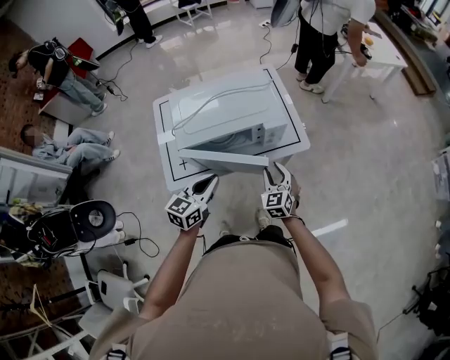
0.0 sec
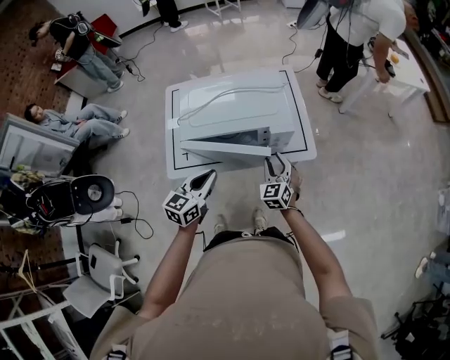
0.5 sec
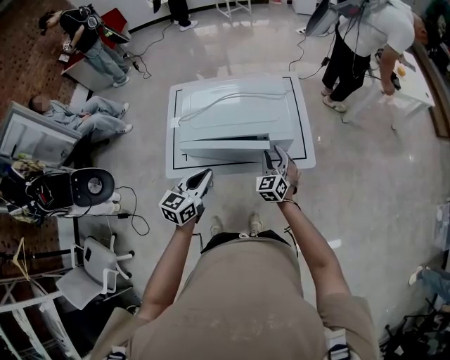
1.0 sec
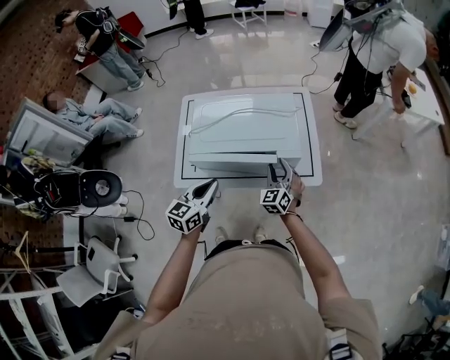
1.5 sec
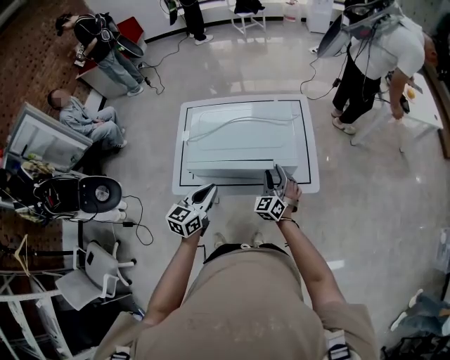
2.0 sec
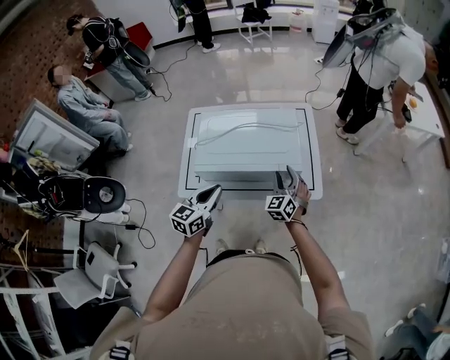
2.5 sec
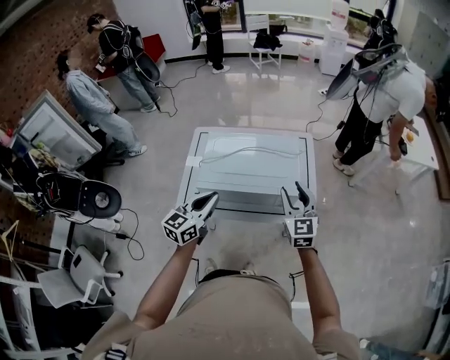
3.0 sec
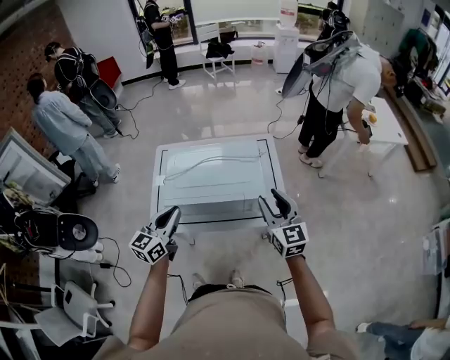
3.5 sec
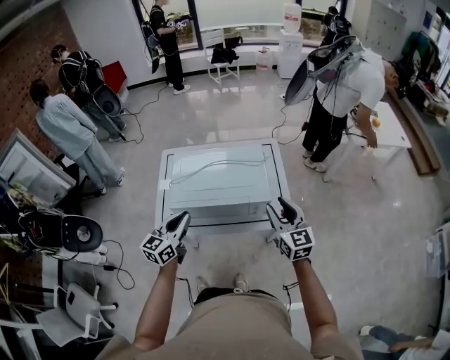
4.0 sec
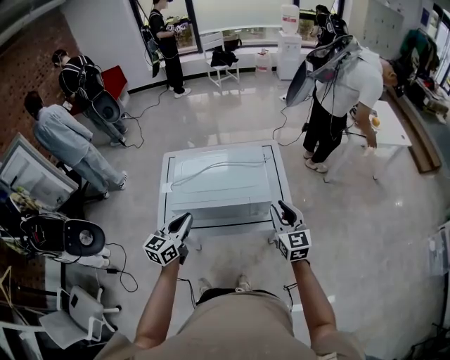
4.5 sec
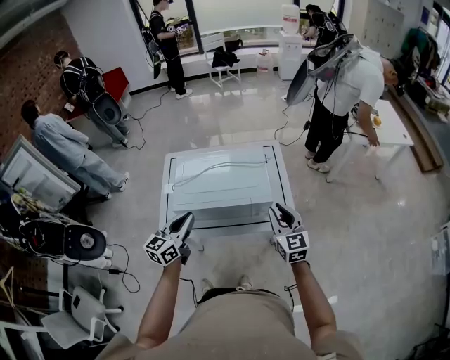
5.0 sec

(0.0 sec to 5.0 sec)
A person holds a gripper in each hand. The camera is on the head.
0.0 sec - 2.5 sec: The right gripper is displaced forward by about 15 cm; the left gripper shifts by about 5 cm.
2.5 sec - 5.0 sec: The right gripper is displaced upward, to the right and backward by roughly 15 cm, rotates roughly 30 degrees, and closes up. Meanwhile the left gripper is displaced upward by about 5 cm.

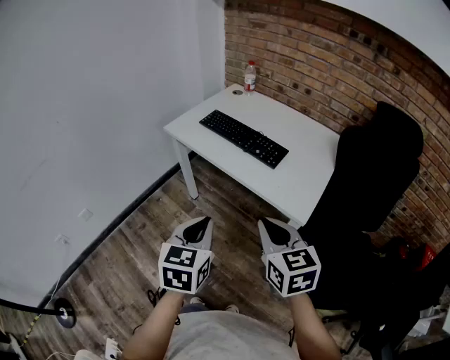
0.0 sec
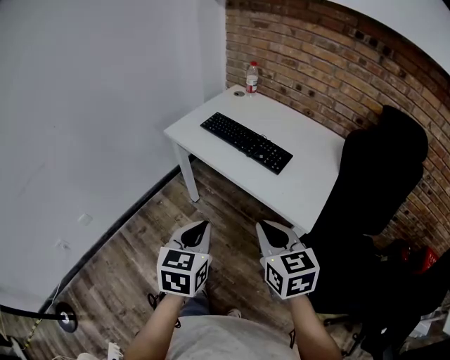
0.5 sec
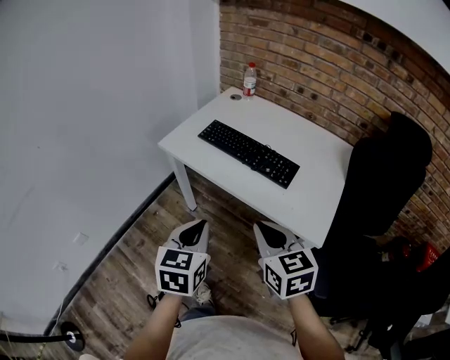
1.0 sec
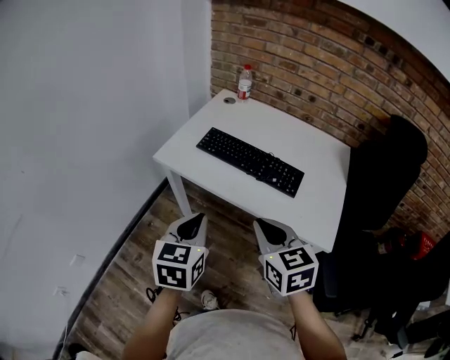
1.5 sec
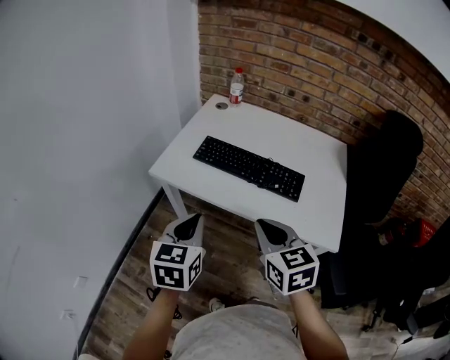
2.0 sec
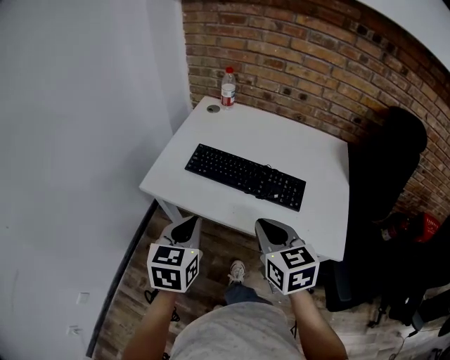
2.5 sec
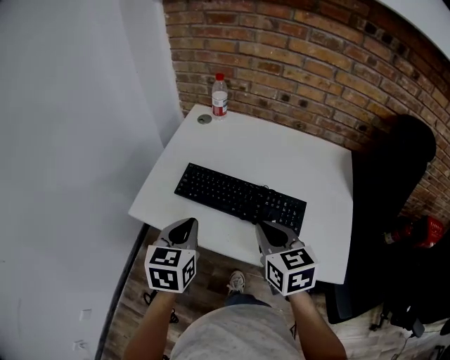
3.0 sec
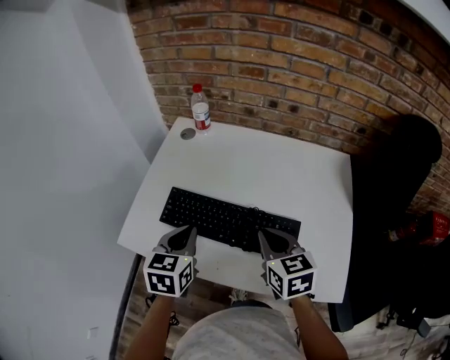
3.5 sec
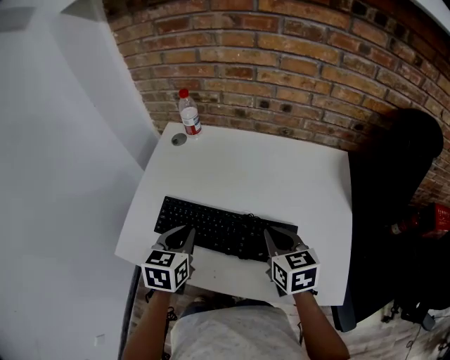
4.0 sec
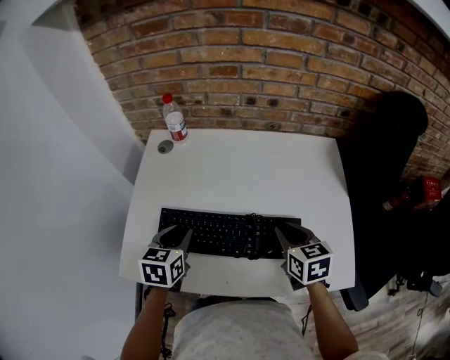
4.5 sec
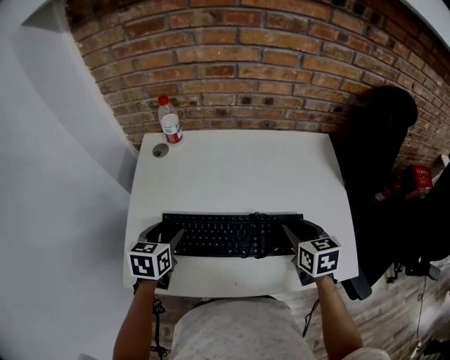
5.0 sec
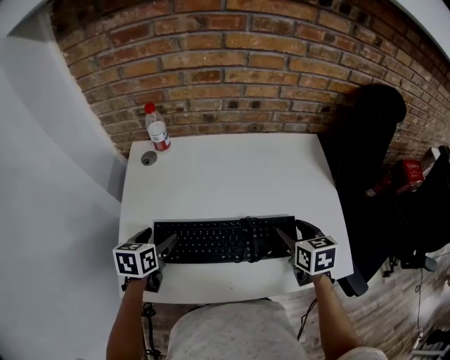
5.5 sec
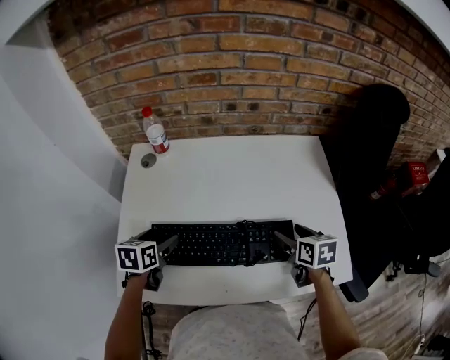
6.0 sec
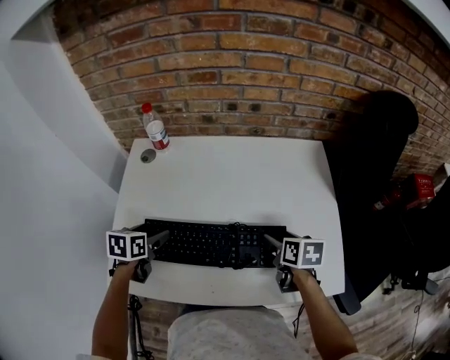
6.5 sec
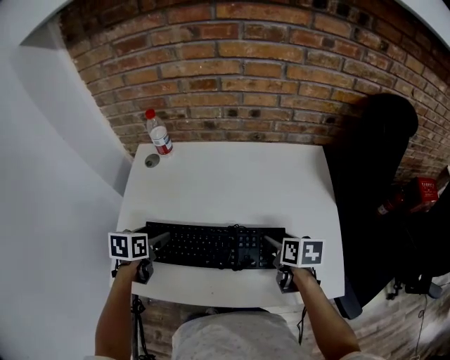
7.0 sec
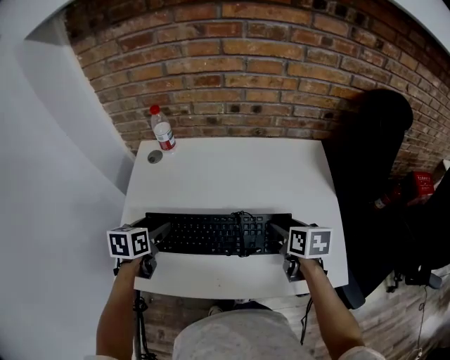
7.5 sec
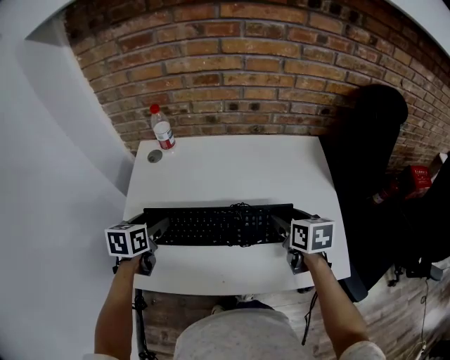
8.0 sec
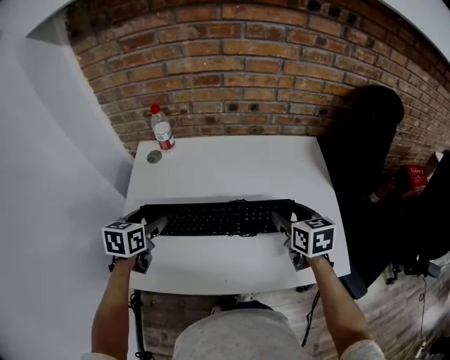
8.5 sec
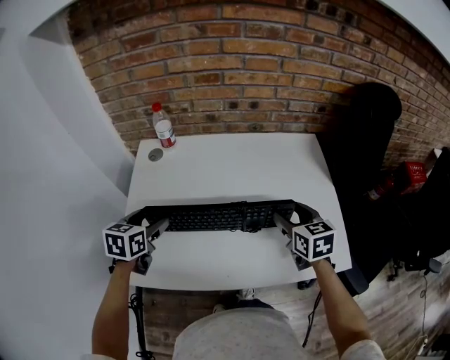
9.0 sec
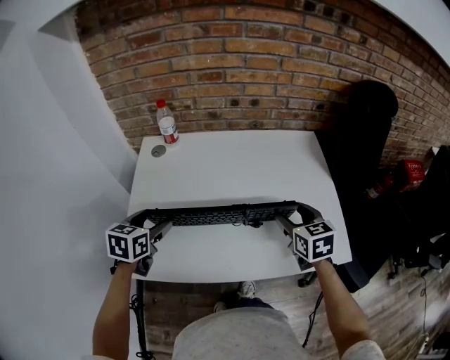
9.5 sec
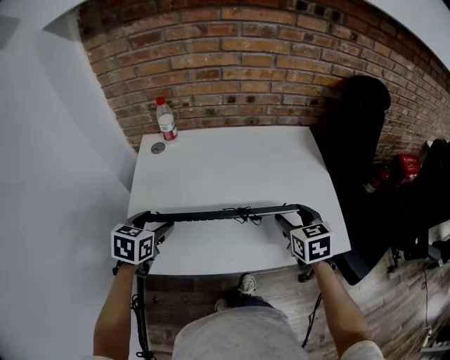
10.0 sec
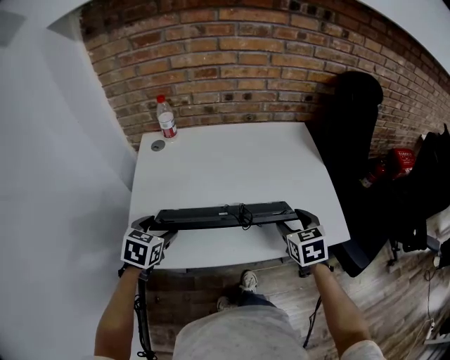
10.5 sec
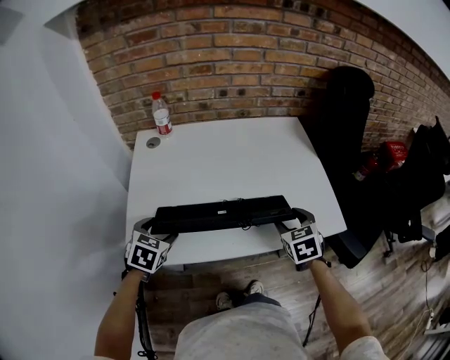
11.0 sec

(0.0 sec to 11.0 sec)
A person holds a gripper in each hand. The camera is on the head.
0.0 sec - 2.0 sec: Both grippers travel together forward and to the left, roughly 30 cm.
2.0 sec - 3.5 sec: The left gripper goes approximately 25 cm forward; the right gripper travels forward and to the right by some 25 cm.
3.5 sec - 5.5 sec: The right gripper travels to the right and downward by approximately 10 cm, swivels some 30 degrees, and opens its fingers; the left gripper heads forward, to the left and downward, covering about 15 cm, turns by roughly 20 degrees, and opens up.
7.5 sec - 9.0 sec: The right gripper changes its angle by about 20 degrees.
9.0 sec - 11.0 sec: The right gripper is displaced backward by about 15 cm, and turns by approximately 20 degrees, while the left gripper travels backward and downward by approximately 15 cm, and rotates roughly 30 degrees.

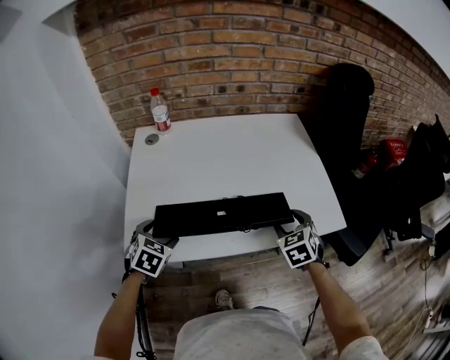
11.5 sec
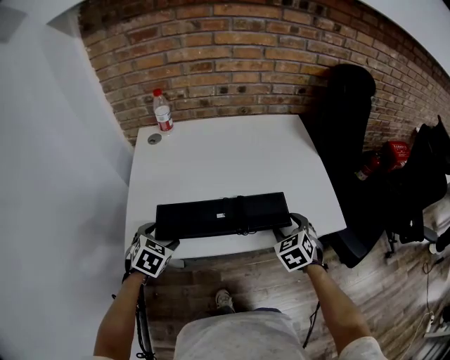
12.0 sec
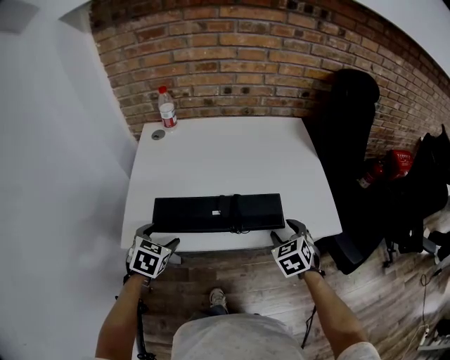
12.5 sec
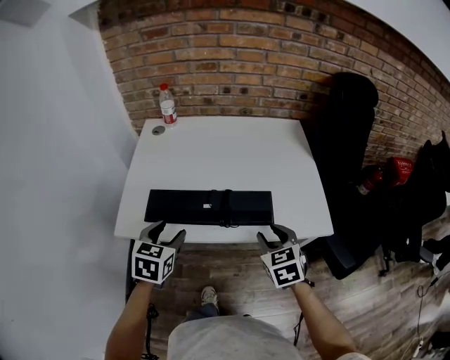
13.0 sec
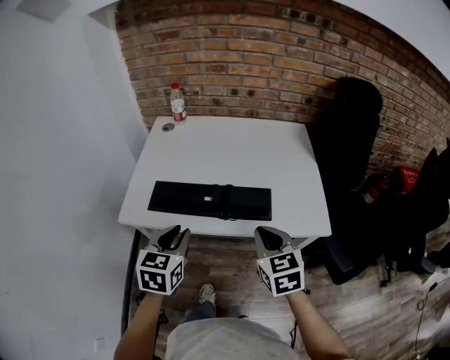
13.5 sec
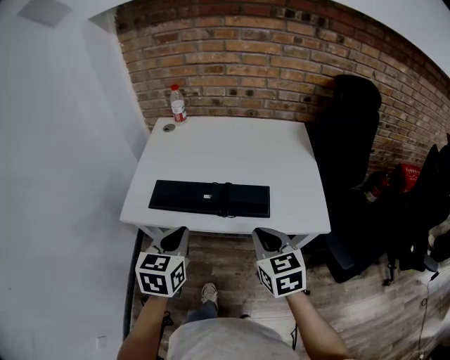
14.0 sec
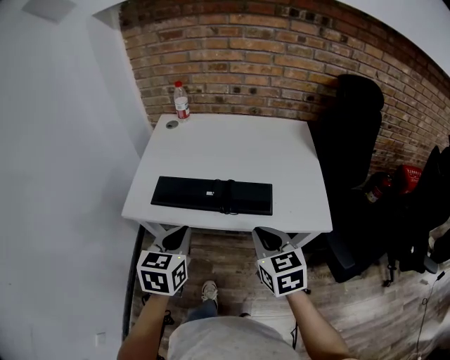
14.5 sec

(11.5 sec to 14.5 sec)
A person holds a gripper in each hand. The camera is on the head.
11.5 sec - 13.0 sec: The left gripper goes about 15 cm to the right, backward and upward, and changes its angle by some 20 degrees. The right gripper moves backward, about 10 cm.
13.0 sec - 14.5 sec: The right gripper heads backward and upward, covering about 10 cm, and closes its fingers, while the left gripper shifts approximately 10 cm backward, to the right and upward, and closes up.

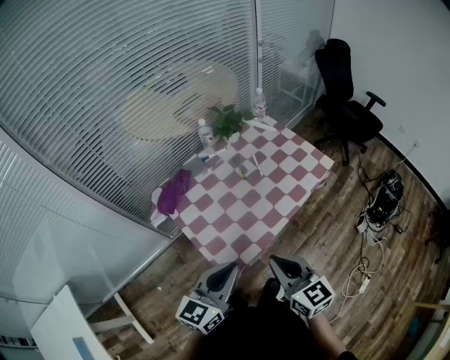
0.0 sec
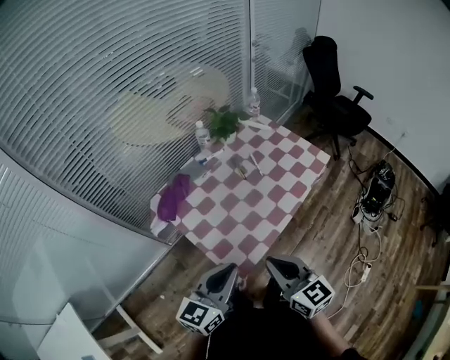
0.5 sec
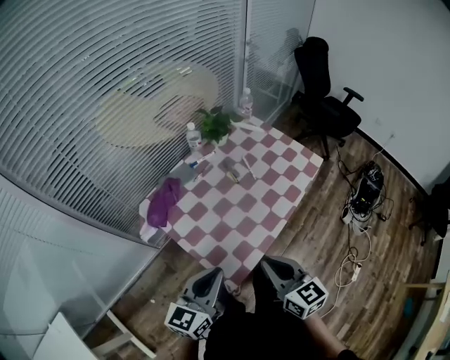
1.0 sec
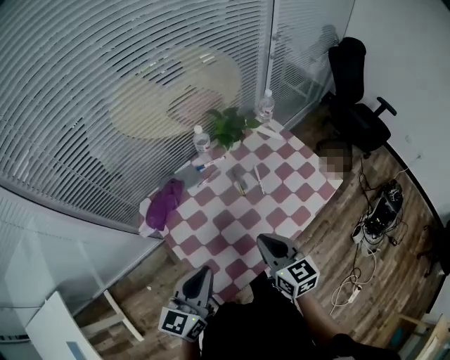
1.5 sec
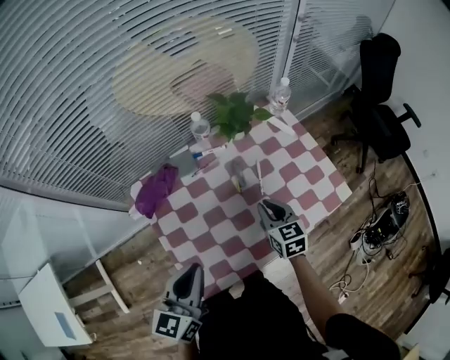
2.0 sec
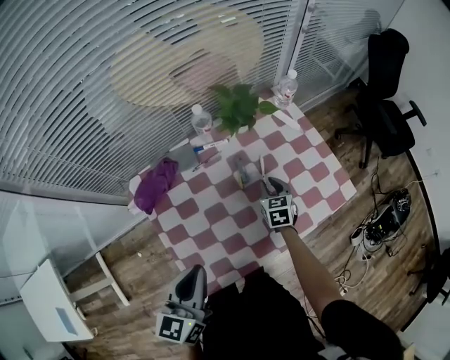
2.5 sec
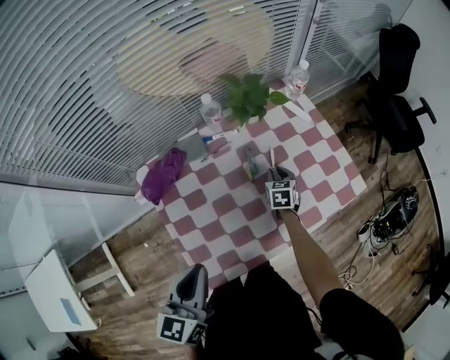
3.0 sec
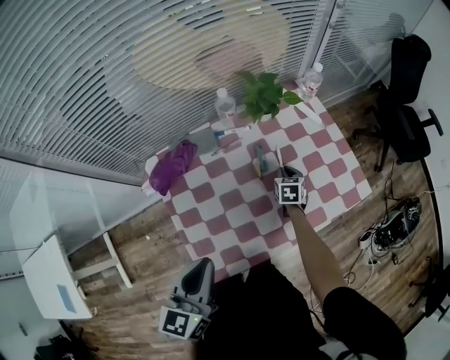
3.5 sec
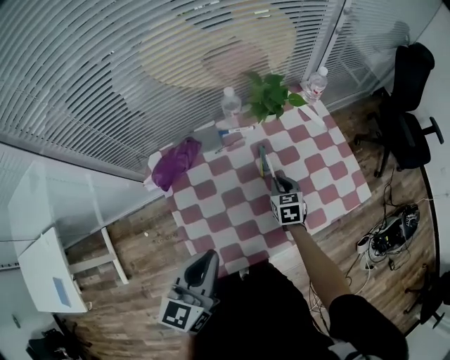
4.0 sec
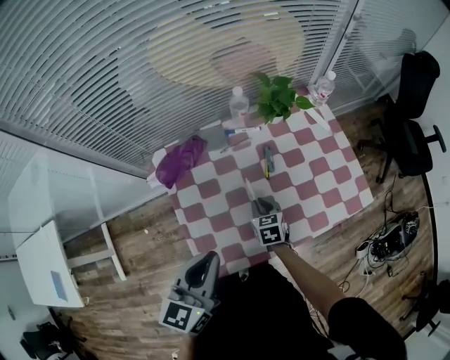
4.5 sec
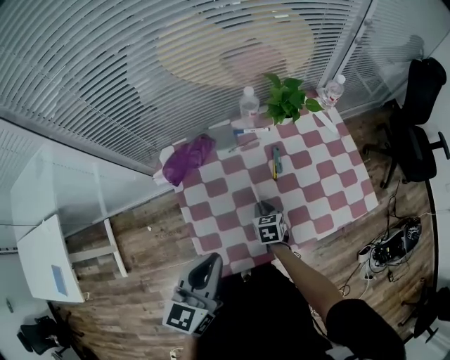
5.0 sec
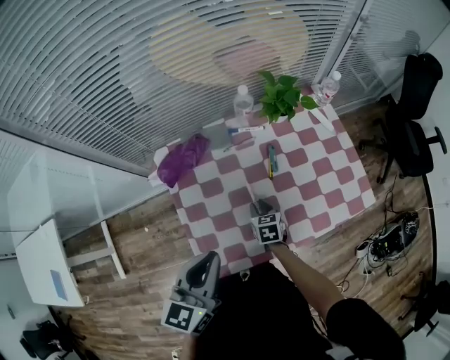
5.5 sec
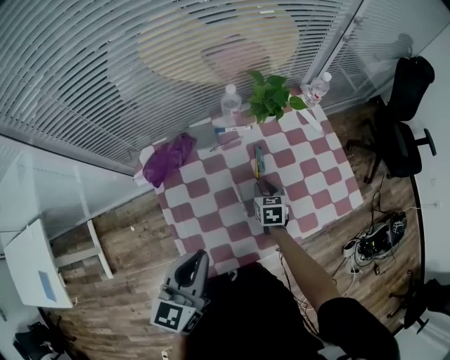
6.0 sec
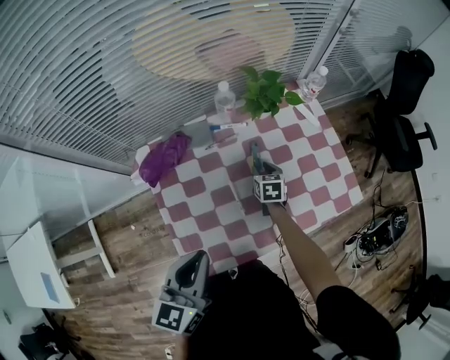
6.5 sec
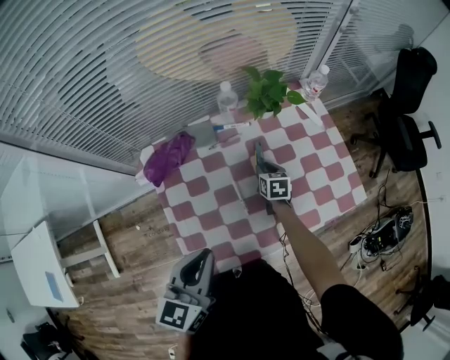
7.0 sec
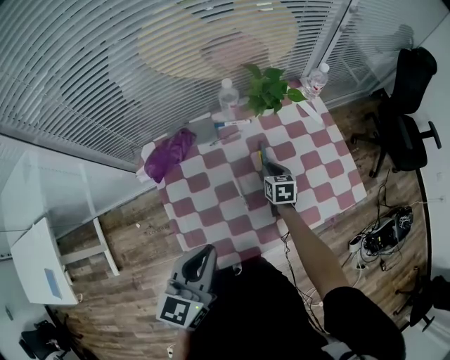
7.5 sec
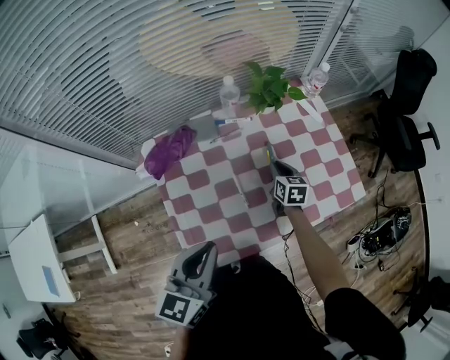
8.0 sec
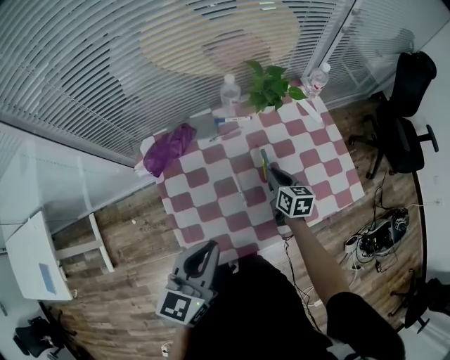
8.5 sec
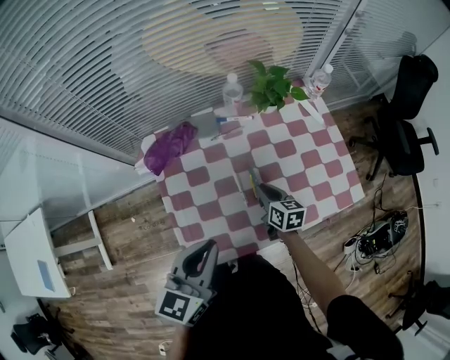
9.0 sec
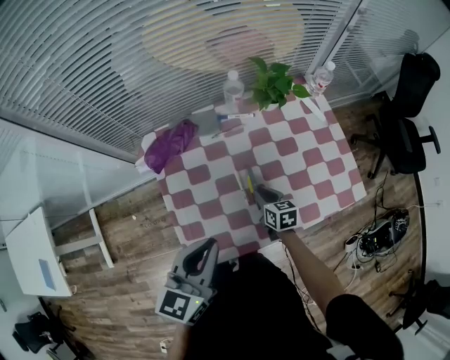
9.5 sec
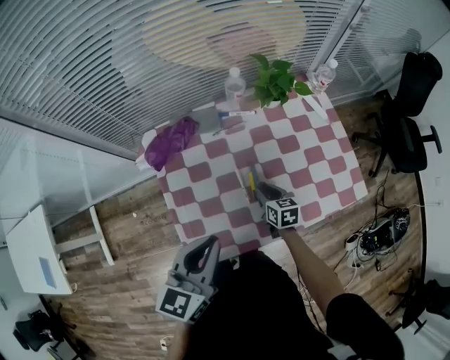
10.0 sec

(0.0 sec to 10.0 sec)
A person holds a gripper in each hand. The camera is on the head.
0.0 sec - 2.0 sec: The right gripper travels forward and downward by about 40 cm, and swivels approximately 20 degrees. The left gripper heads forward, covering roughly 20 cm, and changes its angle by about 30 degrees.
2.0 sec - 4.0 sec: The right gripper travels downward by some 10 cm.
6.0 sec - 8.0 sec: The right gripper moves to the right, about 5 cm.
8.0 sec - 10.0 sec: The right gripper goes some 10 cm backward and to the left.
